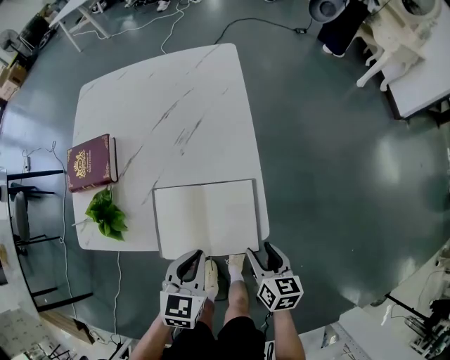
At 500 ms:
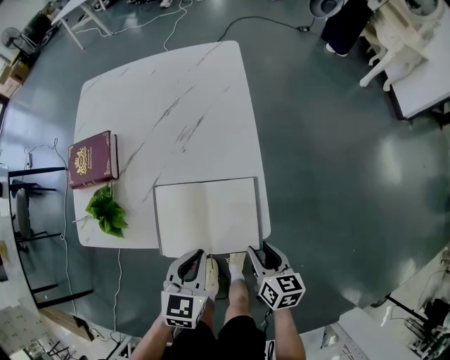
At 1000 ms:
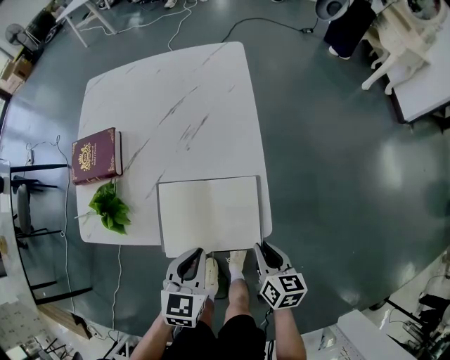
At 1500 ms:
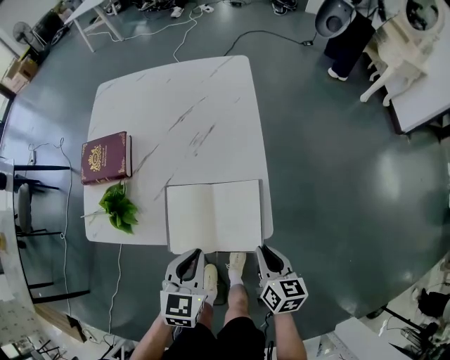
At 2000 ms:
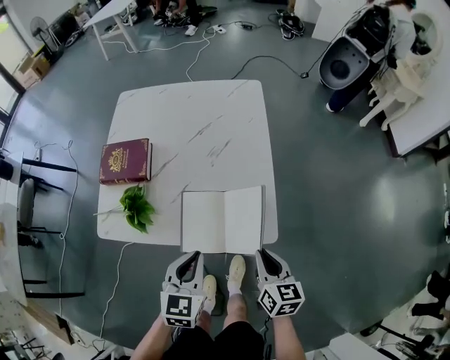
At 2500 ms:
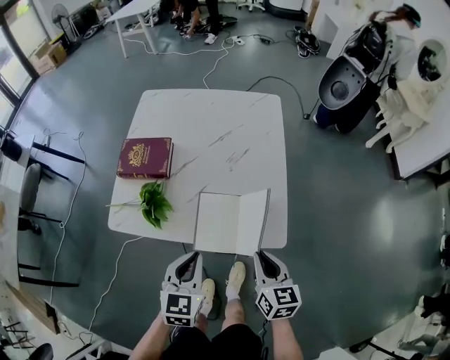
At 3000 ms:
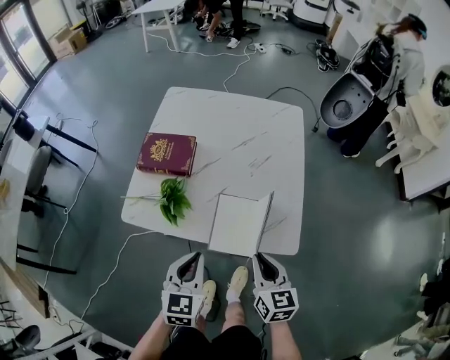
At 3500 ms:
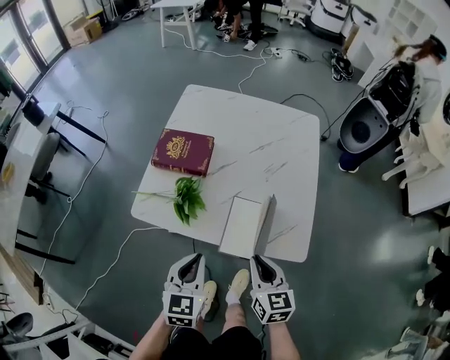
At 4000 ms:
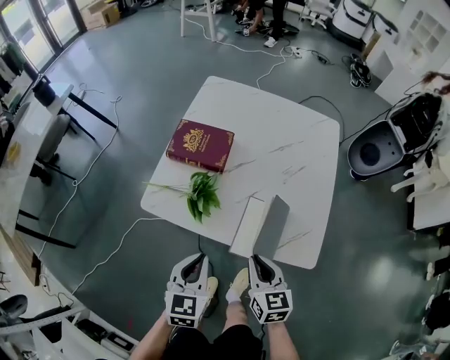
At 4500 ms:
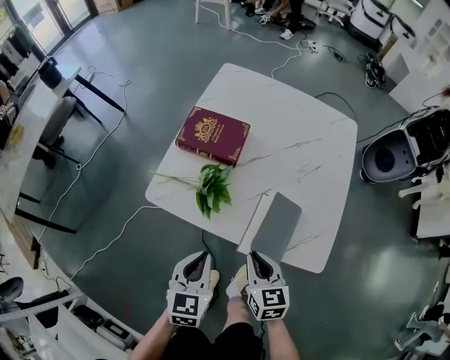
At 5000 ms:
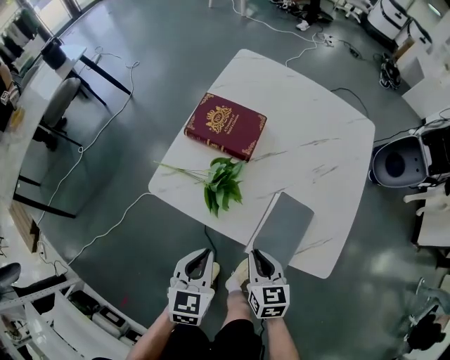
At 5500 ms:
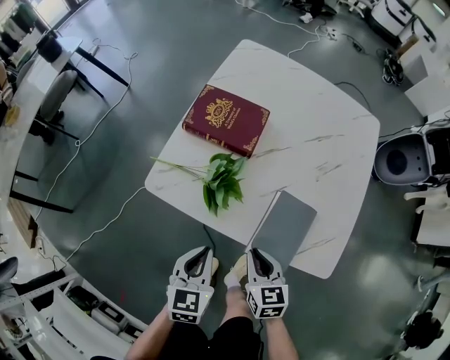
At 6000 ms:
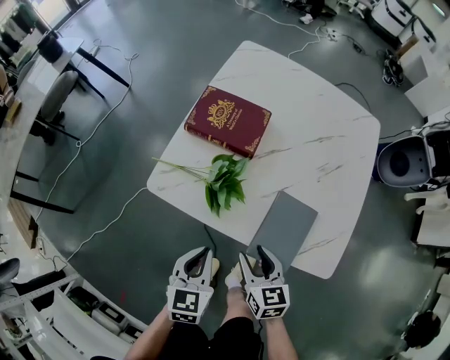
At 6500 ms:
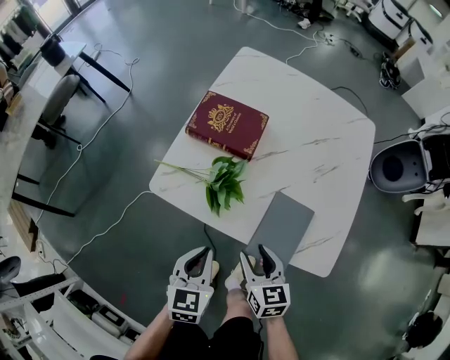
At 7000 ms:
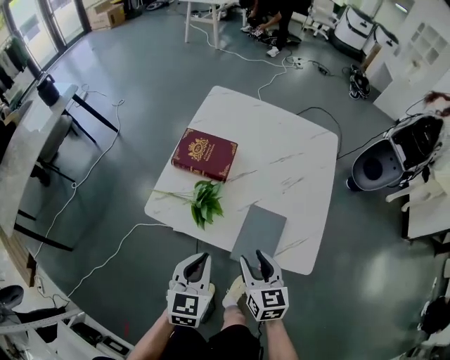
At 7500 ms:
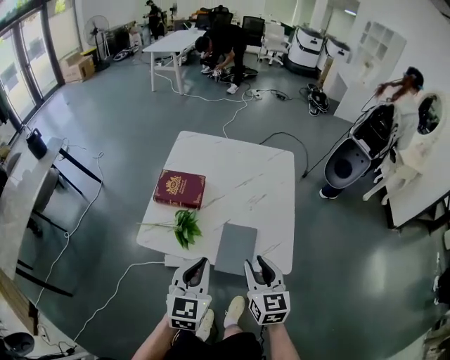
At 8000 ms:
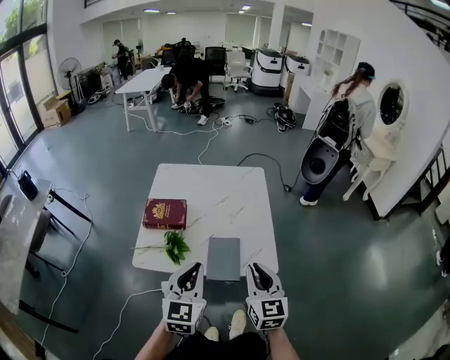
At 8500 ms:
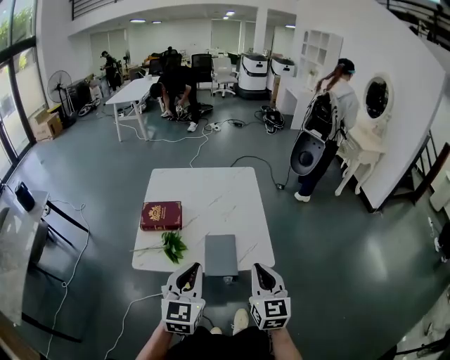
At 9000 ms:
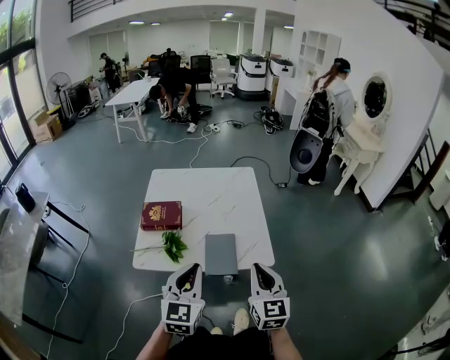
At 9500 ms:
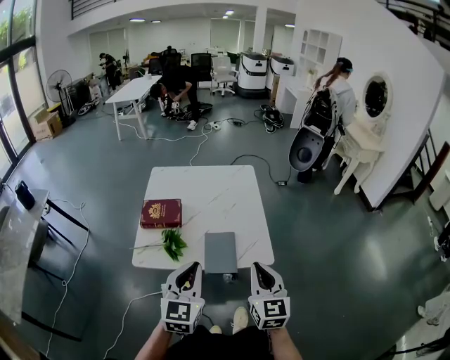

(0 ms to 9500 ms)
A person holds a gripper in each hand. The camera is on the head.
0 ms - 2000 ms: The right gripper heads upward, covering approximately 10 cm, and closes up; the left gripper goes approximately 10 cm upward and to the left.
2000 ms - 4000 ms: The two grippers go about 20 cm to the left. The right gripper turns by roughly 30 degrees.
4000 ms - 5500 ms: The two grippers go some 10 cm downward.
5500 ms - 7500 ms: The grippers both shift upward by some 25 cm. The right gripper swivels roughly 30 degrees, and opens up; the left gripper turns by approximately 30 degrees.
7500 ms - 9500 ms: The right gripper goes about 15 cm backward, upward and to the right, and closes up. Meanwhile the left gripper goes roughly 10 cm backward and upward.

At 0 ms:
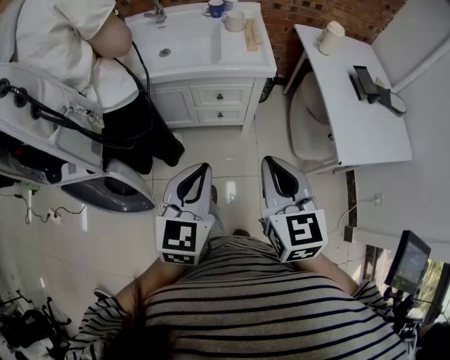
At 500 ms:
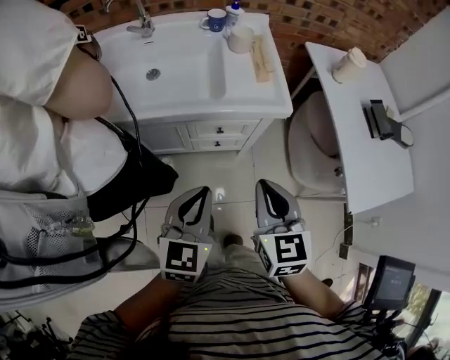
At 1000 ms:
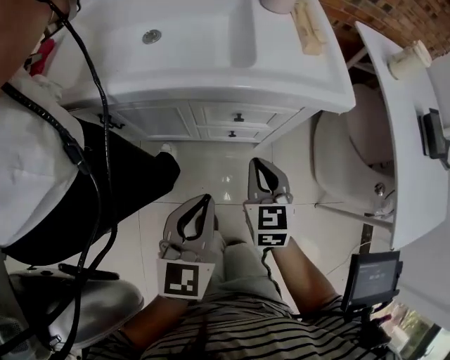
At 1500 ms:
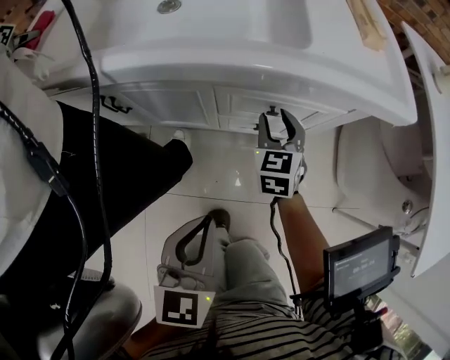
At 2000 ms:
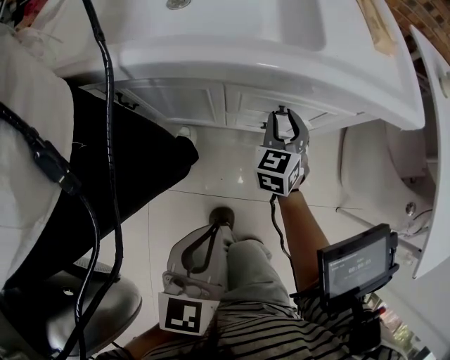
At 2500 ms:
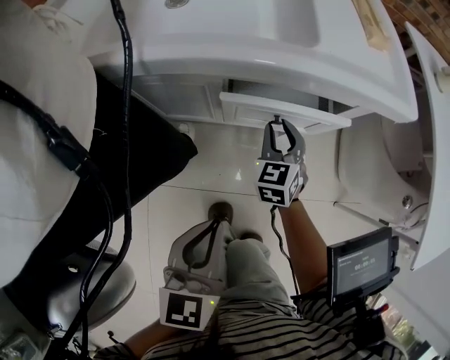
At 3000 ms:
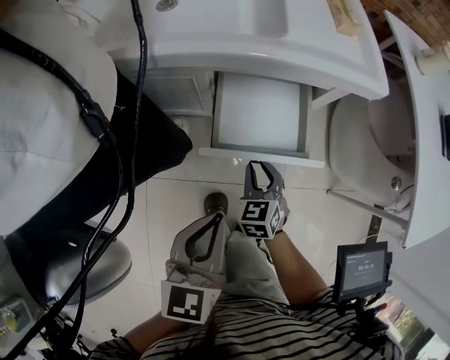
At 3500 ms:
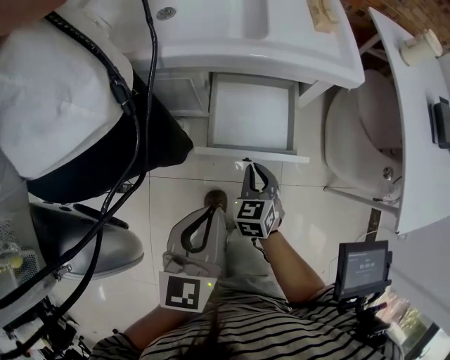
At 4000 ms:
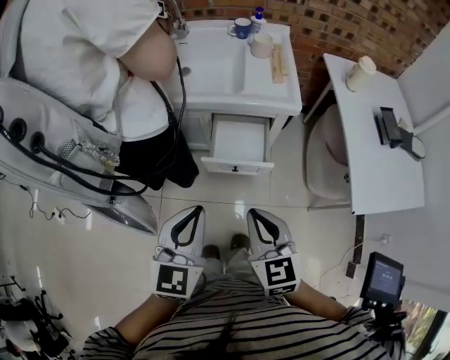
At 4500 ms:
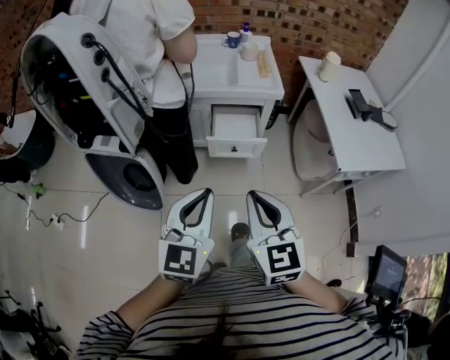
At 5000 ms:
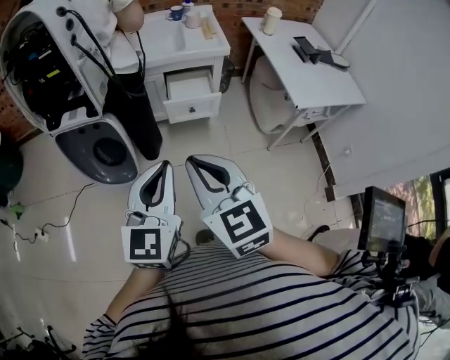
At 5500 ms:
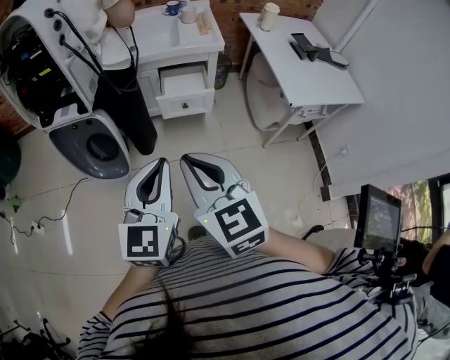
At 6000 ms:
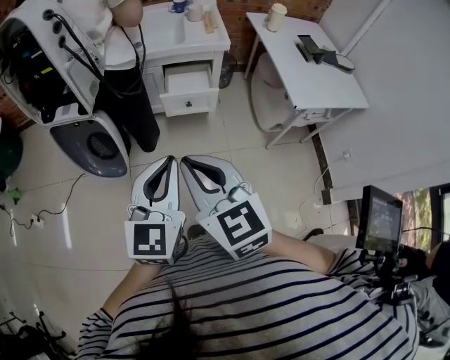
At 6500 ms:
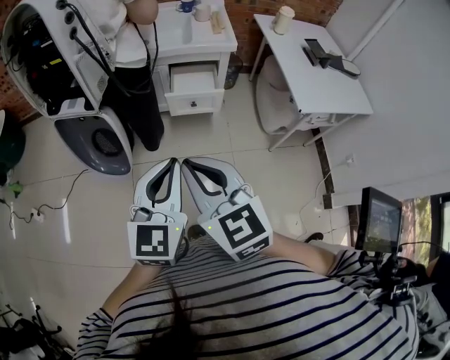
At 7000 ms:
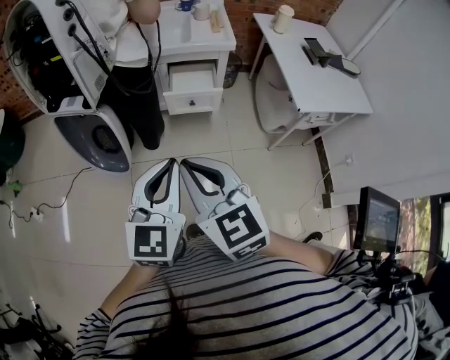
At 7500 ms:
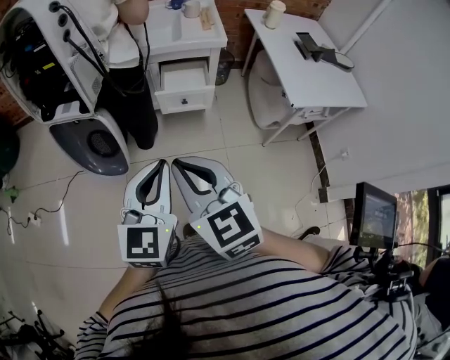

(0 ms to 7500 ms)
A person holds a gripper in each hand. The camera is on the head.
0 ms - 2000 ms: The left gripper travels downward and forward by roughly 35 cm. The right gripper goes roughly 60 cm downward and forward, changes its angle by about 20 degrees, and opens.
2000 ms - 4000 ms: The right gripper is displaced backward and upward by about 50 cm, swivels some 30 degrees, and closes, while the left gripper travels upward and backward by about 30 cm.
4000 ms - 5500 ms: The left gripper shifts roughly 25 cm backward, while the right gripper shifts some 30 cm backward and upward.
5500 ms - 7500 ms: The grippers make only small movements.

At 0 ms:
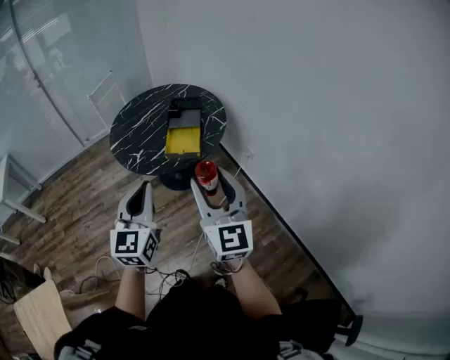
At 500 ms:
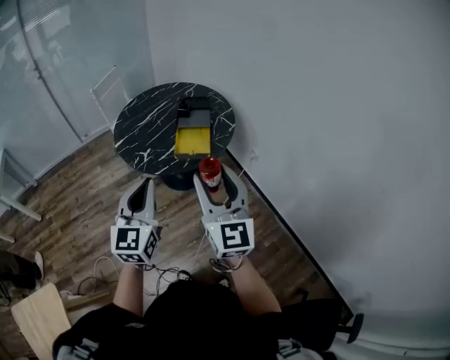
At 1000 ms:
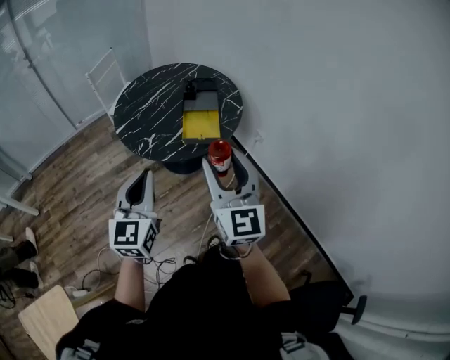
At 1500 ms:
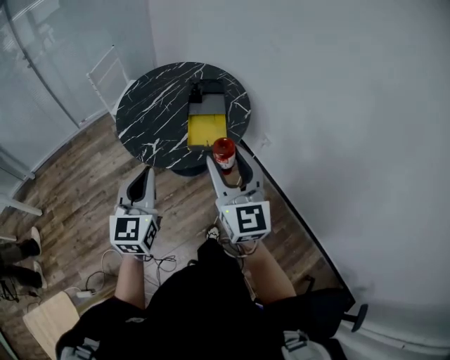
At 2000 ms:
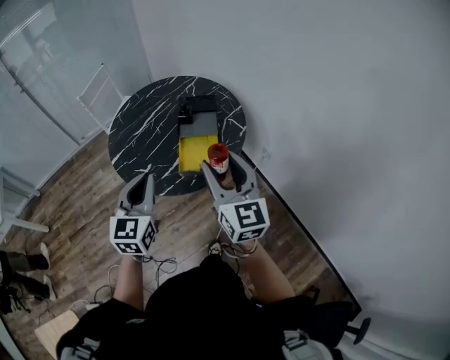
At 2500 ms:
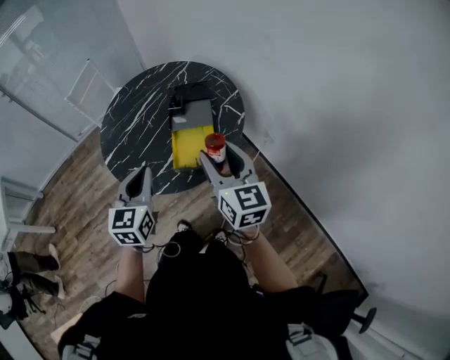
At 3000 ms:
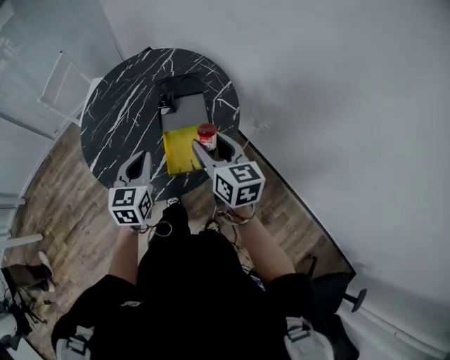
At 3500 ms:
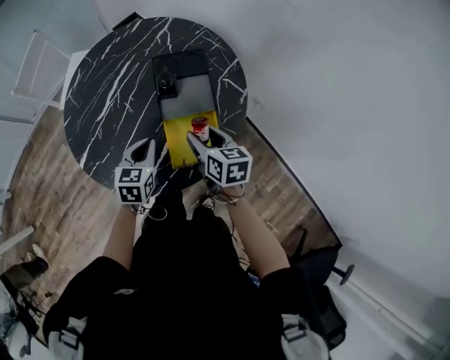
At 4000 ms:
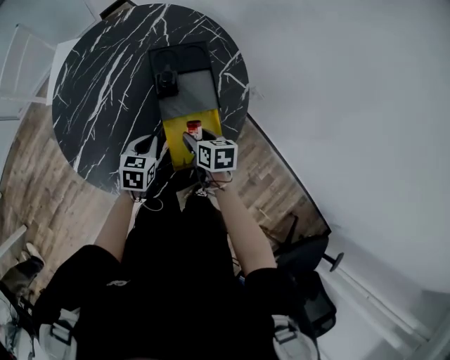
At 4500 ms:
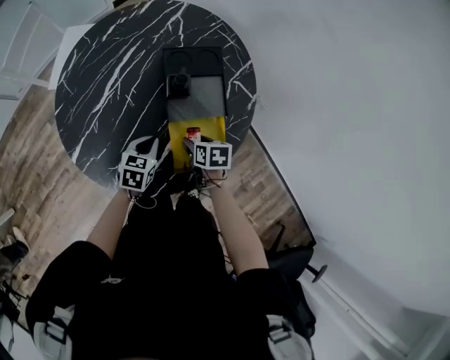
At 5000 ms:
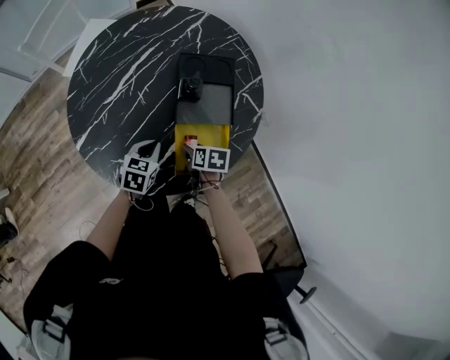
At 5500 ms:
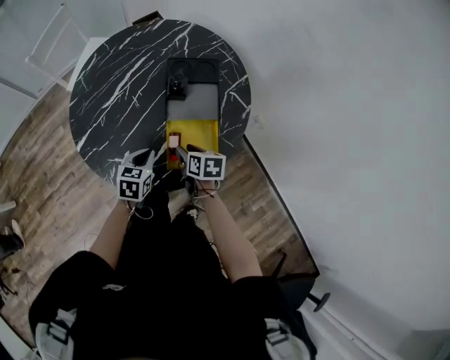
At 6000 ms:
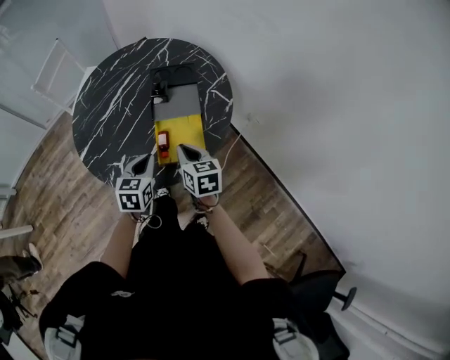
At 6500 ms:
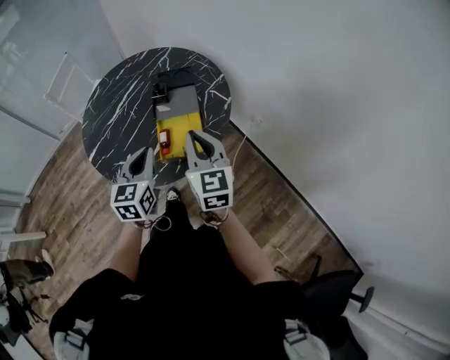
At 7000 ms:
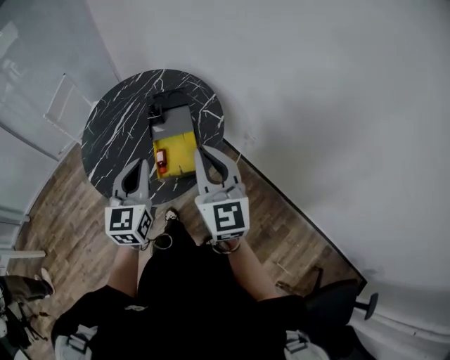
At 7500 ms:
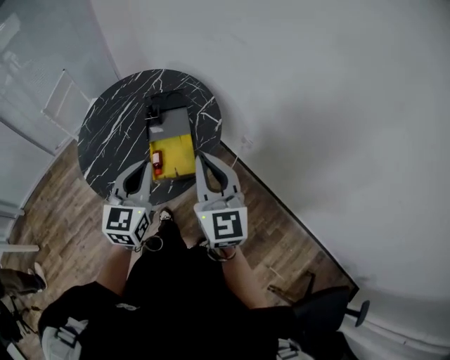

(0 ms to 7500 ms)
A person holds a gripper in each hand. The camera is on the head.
0 ms - 2000 ms: The grippers both shift forward by about 25 cm.
2000 ms - 4000 ms: The two grippers go about 50 cm downward and forward. The right gripper points its fingers about 50 degrees further downward, while the left gripper tips its fingers downward by about 30 degrees.
4000 ms - 5500 ms: The left gripper heads backward, covering about 5 cm. The right gripper ends up roughly 5 cm from where it was.
5500 ms - 7500 ms: The right gripper moves upward, backward and to the right, some 40 cm, angles its fingers upward, by roughly 50 degrees, and closes. The left gripper shifts roughly 30 cm upward and to the right, and angles its fingers upward, by roughly 30 degrees.

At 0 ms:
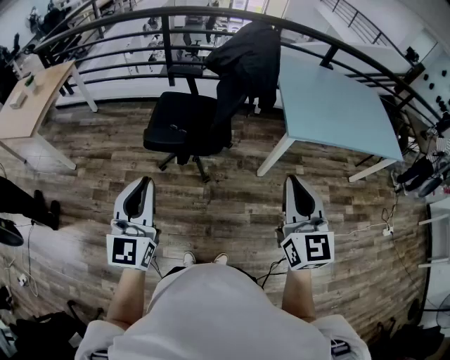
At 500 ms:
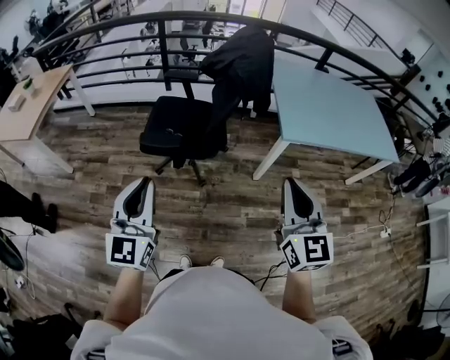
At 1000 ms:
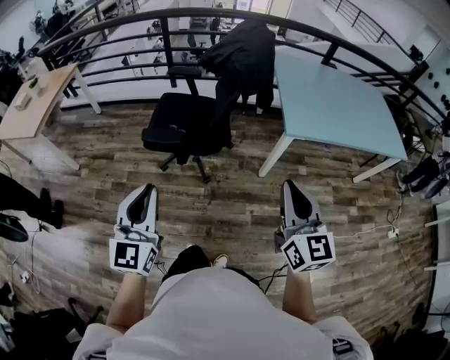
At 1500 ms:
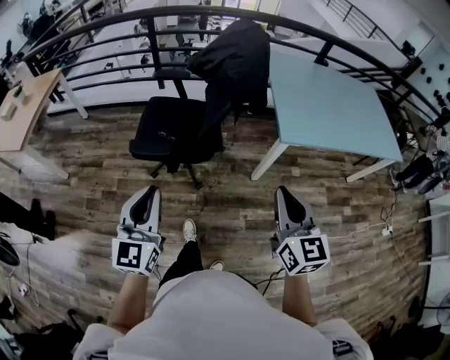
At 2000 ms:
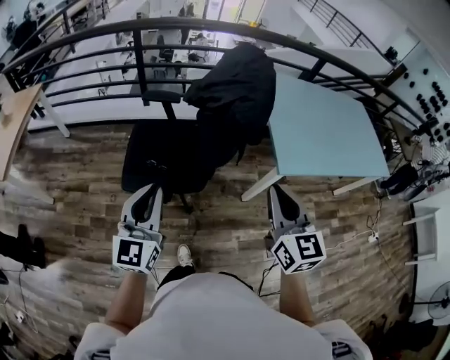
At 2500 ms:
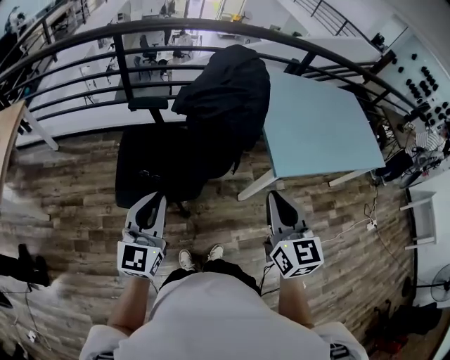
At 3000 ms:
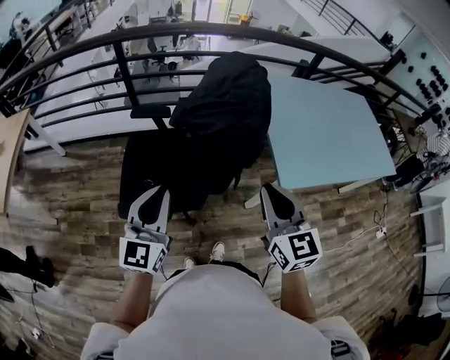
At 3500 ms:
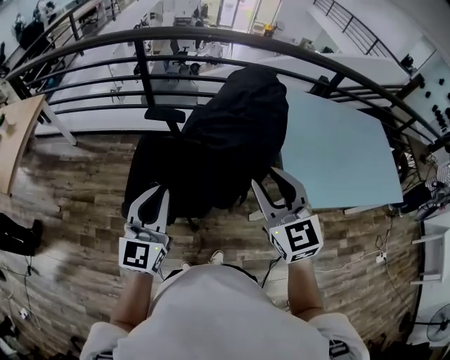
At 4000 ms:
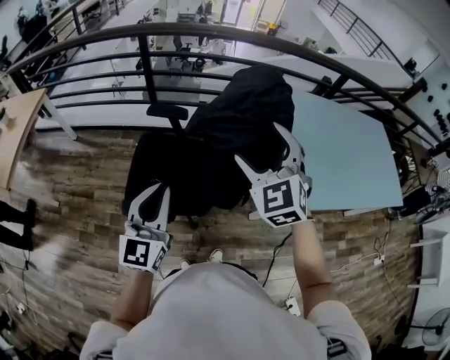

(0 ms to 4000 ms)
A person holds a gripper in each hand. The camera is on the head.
0 ms - 2000 ms: Both grippers travel together forward, some 20 cm.
2000 ms - 4000 ms: The right gripper is displaced forward by about 25 cm, twists approximately 40 degrees counterclockwise, seen from behind, and opens its fingers. The left gripper shifts roughly 15 cm forward.
